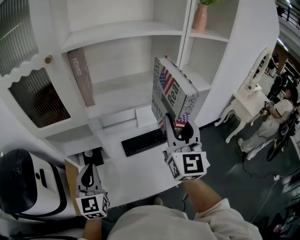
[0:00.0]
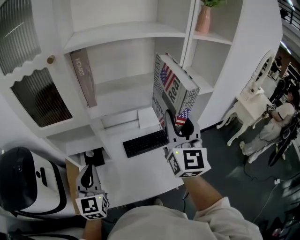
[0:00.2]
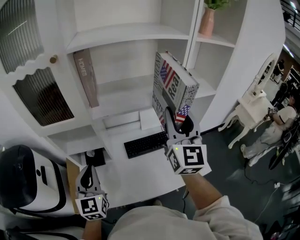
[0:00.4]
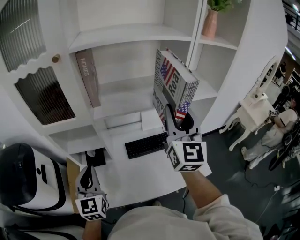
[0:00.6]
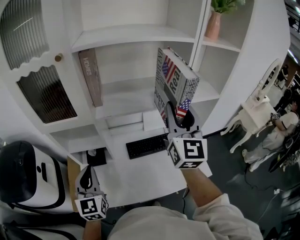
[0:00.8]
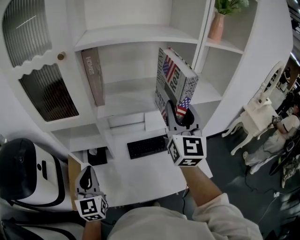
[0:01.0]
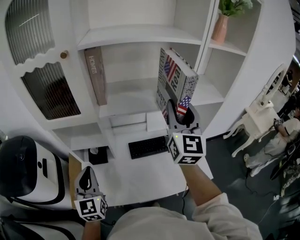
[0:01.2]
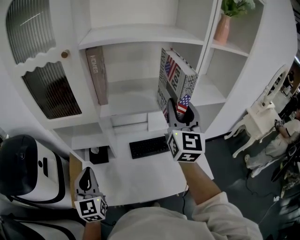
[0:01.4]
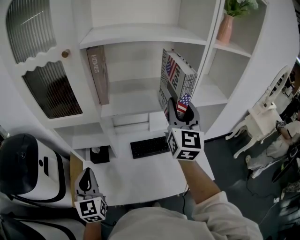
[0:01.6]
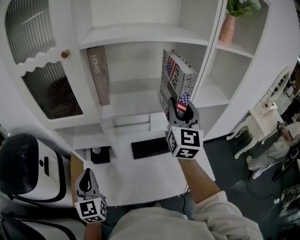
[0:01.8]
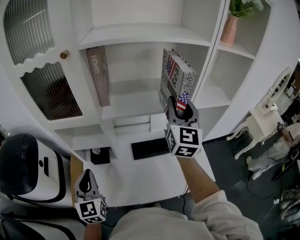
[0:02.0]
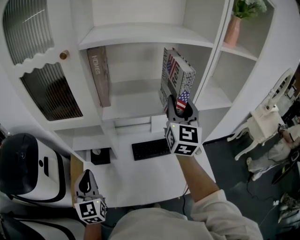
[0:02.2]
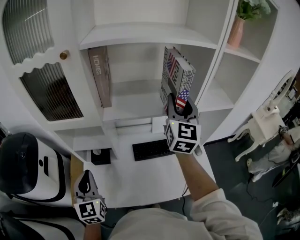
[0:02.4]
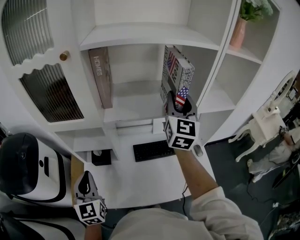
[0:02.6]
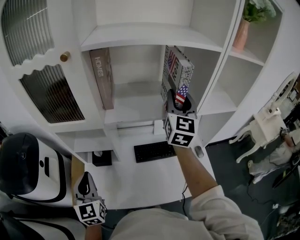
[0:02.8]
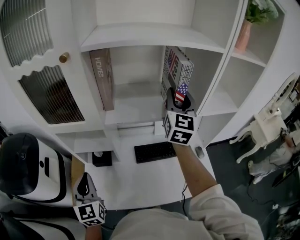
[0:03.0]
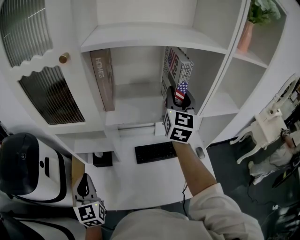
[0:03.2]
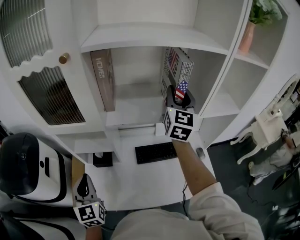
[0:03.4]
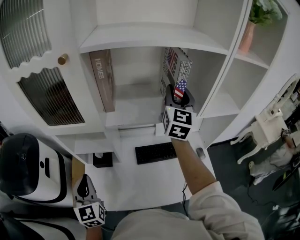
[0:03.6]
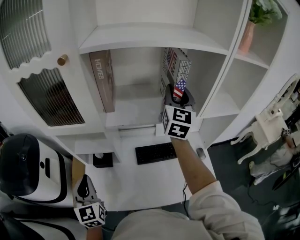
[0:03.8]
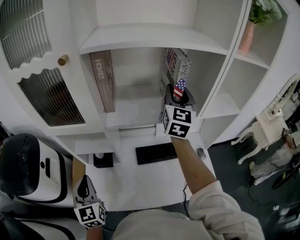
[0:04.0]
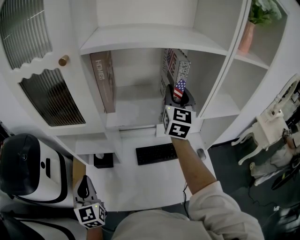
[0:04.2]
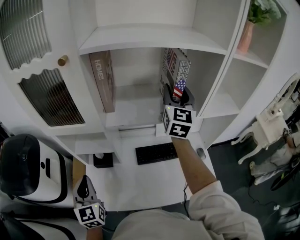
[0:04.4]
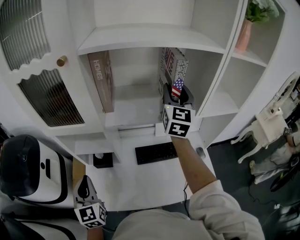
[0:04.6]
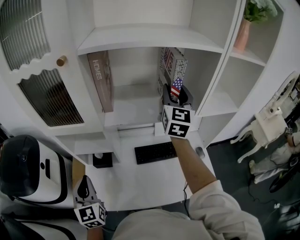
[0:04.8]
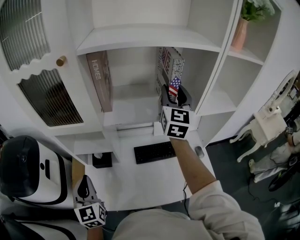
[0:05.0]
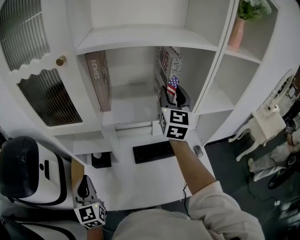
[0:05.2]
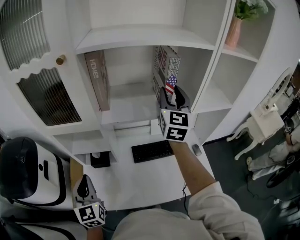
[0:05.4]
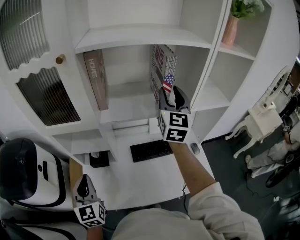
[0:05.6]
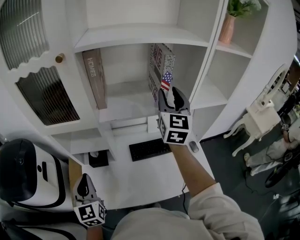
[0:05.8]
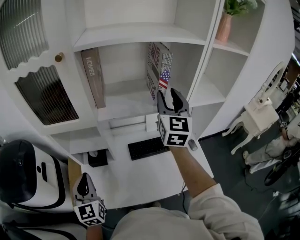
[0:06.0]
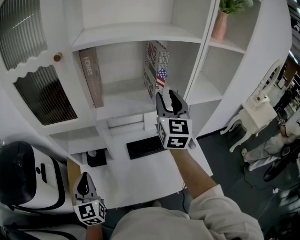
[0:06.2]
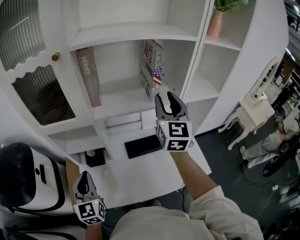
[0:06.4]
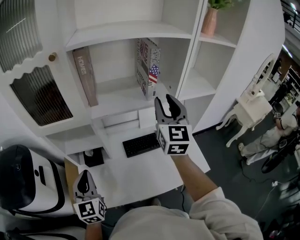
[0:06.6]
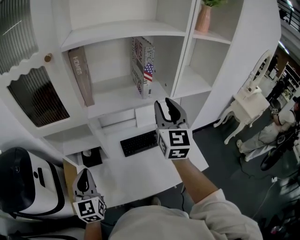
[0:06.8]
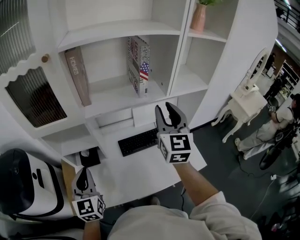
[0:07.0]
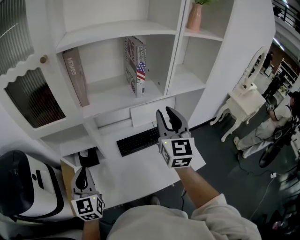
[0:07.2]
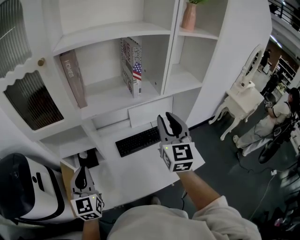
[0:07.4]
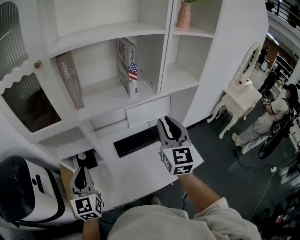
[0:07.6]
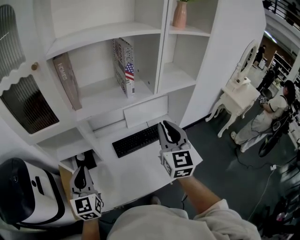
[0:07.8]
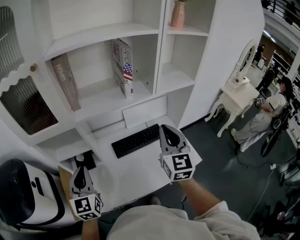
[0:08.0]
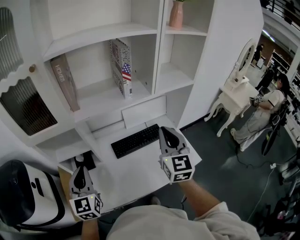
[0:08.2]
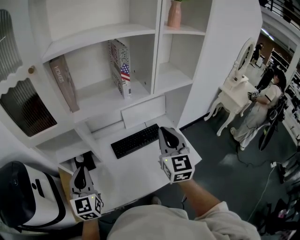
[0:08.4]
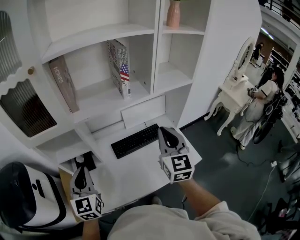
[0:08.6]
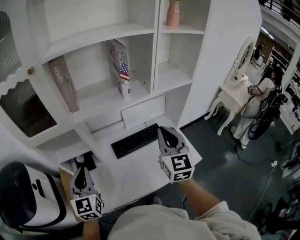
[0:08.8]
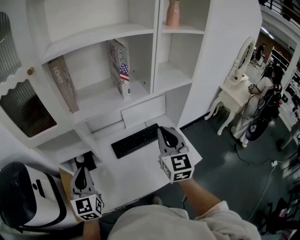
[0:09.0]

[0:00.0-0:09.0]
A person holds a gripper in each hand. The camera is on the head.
0:00.0 to 0:01.6: The right gripper heads forward, covering approximately 10 cm.
0:01.6 to 0:03.0: The right gripper heads forward, covering some 10 cm.
0:03.0 to 0:04.4: There are only small adjustments of the grippers.
0:04.4 to 0:06.0: The right gripper shifts about 10 cm backward.
0:06.0 to 0:07.6: The left gripper moves to the right, about 5 cm. The right gripper heads backward, covering about 15 cm, and closes.
0:07.6 to 0:09.0: The right gripper closes.

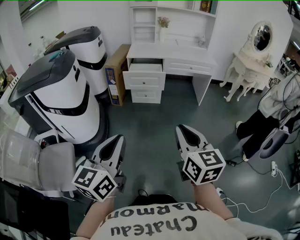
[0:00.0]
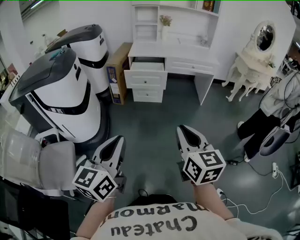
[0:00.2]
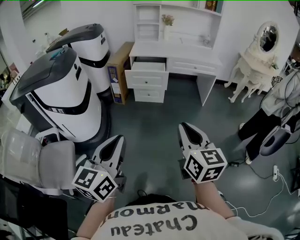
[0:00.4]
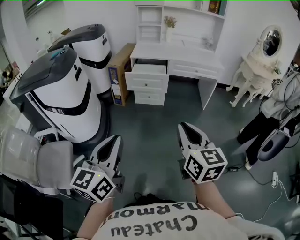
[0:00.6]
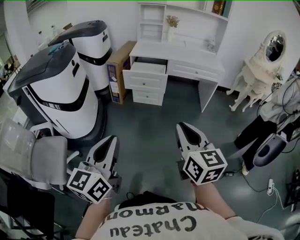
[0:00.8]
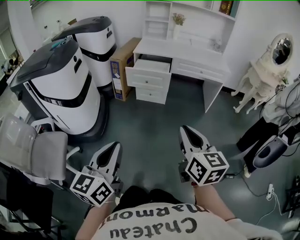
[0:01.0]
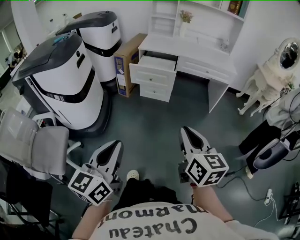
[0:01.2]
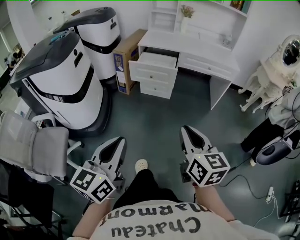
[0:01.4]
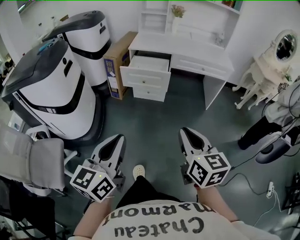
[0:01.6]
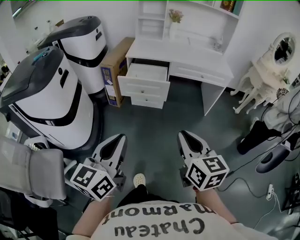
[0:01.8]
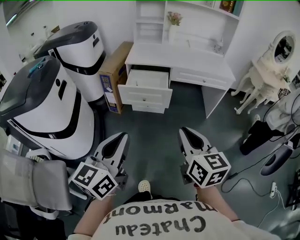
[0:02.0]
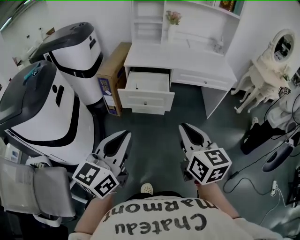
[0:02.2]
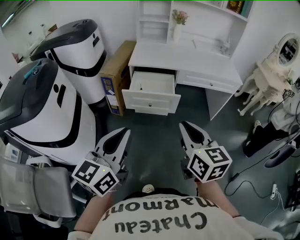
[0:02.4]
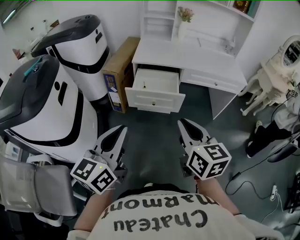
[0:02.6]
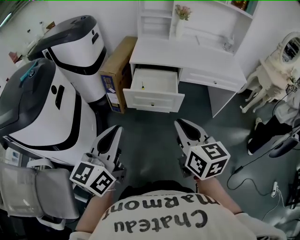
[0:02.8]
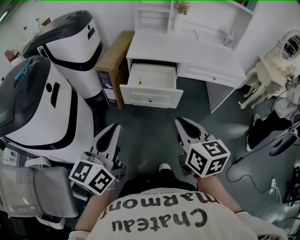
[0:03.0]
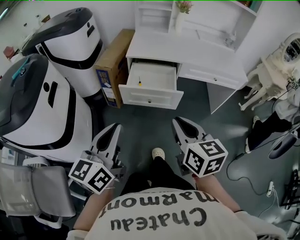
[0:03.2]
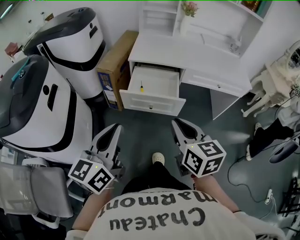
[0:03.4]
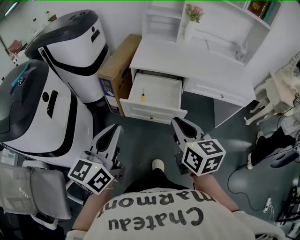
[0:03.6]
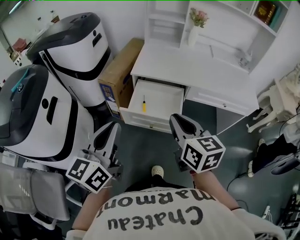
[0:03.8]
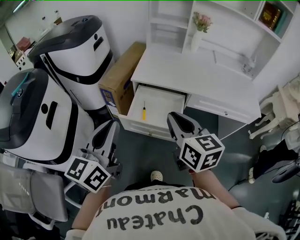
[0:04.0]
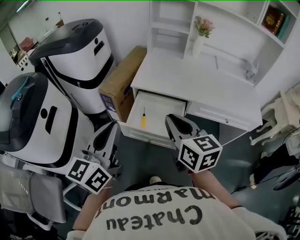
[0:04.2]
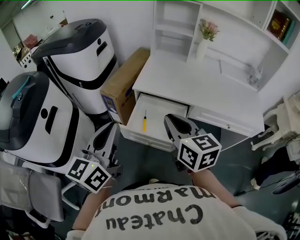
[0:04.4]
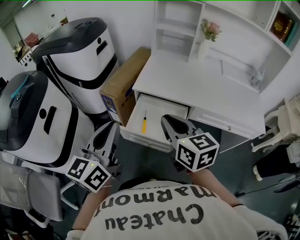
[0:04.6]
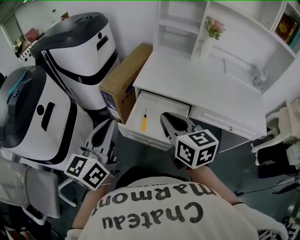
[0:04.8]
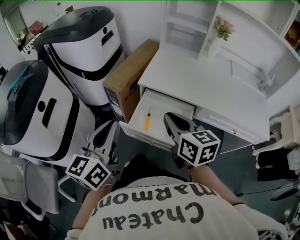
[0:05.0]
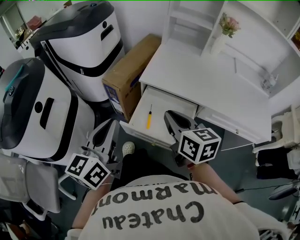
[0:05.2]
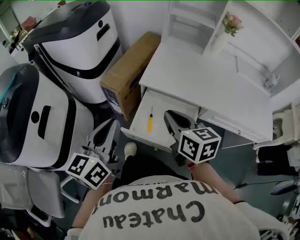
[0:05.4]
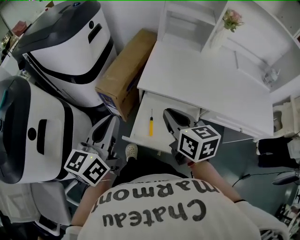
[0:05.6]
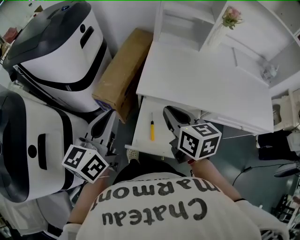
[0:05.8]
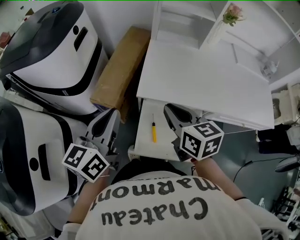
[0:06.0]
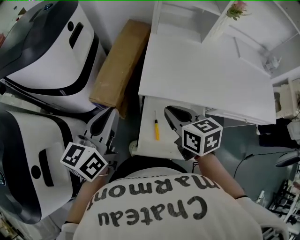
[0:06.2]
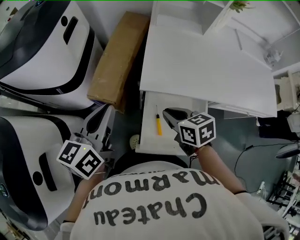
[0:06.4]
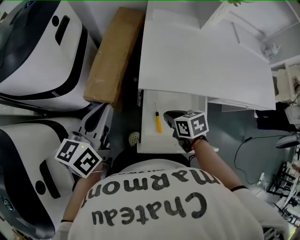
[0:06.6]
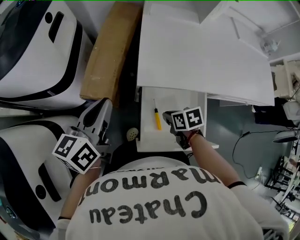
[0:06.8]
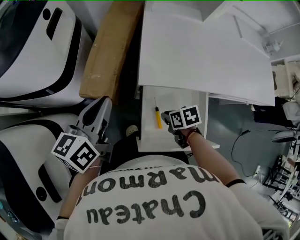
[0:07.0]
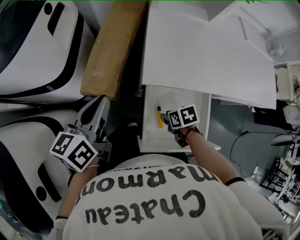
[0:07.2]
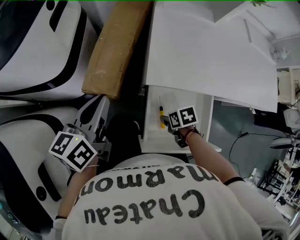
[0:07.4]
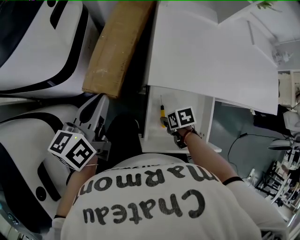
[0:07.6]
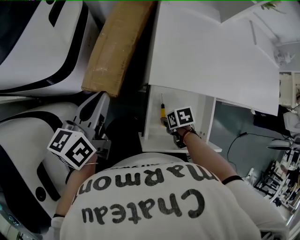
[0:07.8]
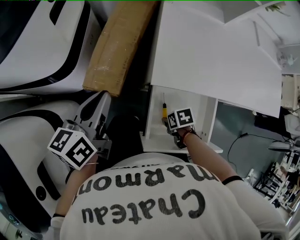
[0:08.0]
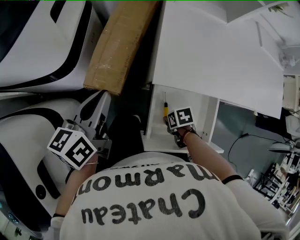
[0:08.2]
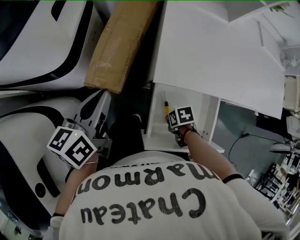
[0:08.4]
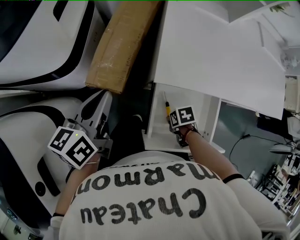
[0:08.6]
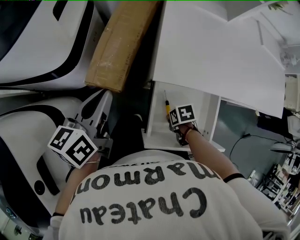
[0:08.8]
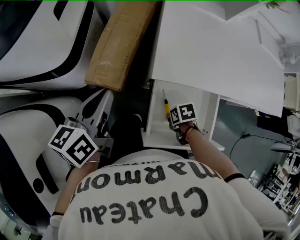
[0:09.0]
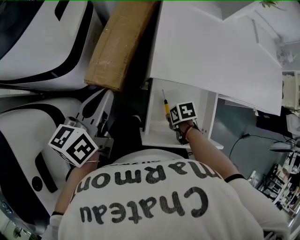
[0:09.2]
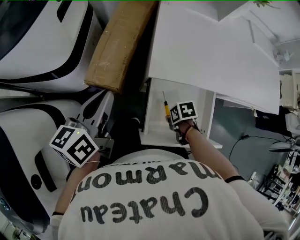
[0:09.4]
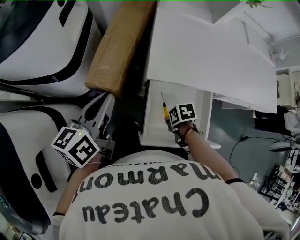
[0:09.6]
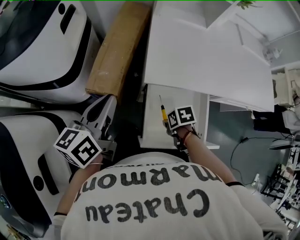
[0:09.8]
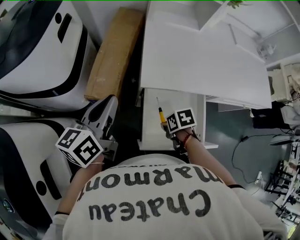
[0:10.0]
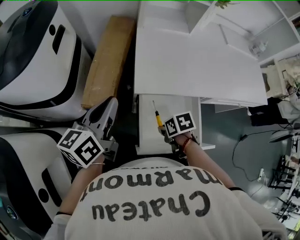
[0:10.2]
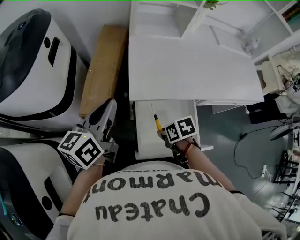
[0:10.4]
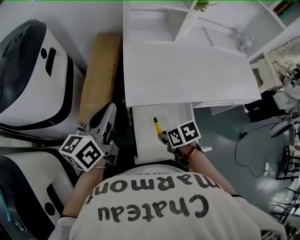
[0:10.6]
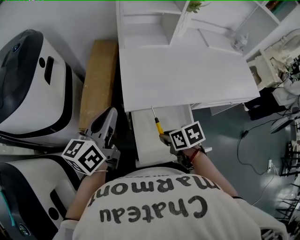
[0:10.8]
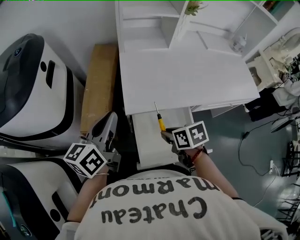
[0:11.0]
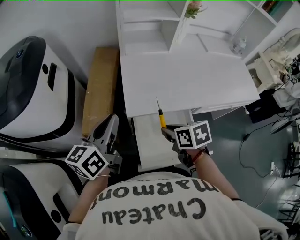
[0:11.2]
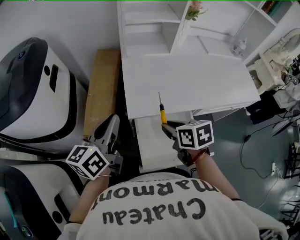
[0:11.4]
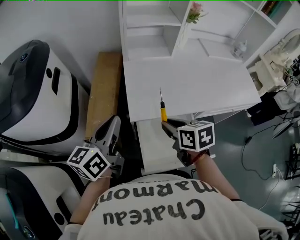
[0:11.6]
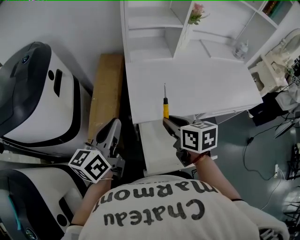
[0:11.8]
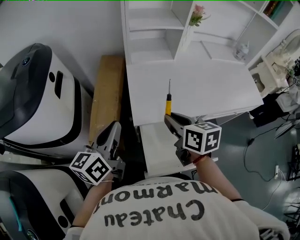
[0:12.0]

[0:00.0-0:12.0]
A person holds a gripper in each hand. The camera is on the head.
0:00.0 to 0:01.6: The grippers both shift forward and to the right by some 20 cm.
0:01.6 to 0:03.0: The right gripper heads forward and to the left, covering roughly 30 cm; the left gripper travels forward by roughly 25 cm.
0:03.0 to 0:04.4: Both grippers move forward, approximately 25 cm.
0:04.4 to 0:06.0: The left gripper goes approximately 25 cm forward. The right gripper shifts roughly 25 cm forward and downward.
0:06.0 to 0:07.6: The left gripper goes approximately 15 cm downward, forward and to the left. The right gripper travels downward by roughly 35 cm, points its fingers roughly 40 degrees further downward, and opens.
0:07.6 to 0:09.0: The right gripper closes.
0:09.0 to 0:10.4: The right gripper moves upward, about 15 cm. The left gripper goes some 10 cm upward.
0:10.4 to 0:12.0: The right gripper goes approximately 25 cm upward and forward, and tilts its fingers some 30 degrees upward.

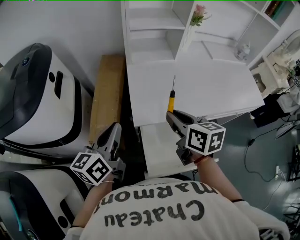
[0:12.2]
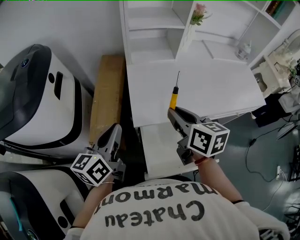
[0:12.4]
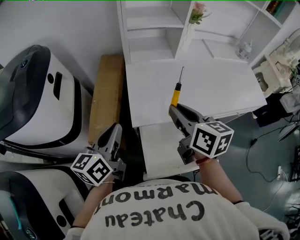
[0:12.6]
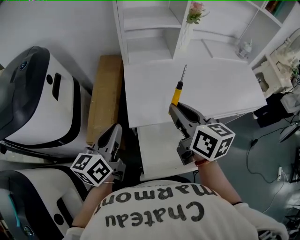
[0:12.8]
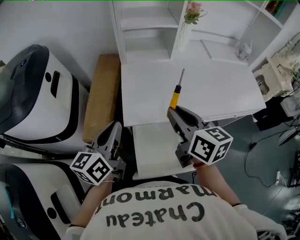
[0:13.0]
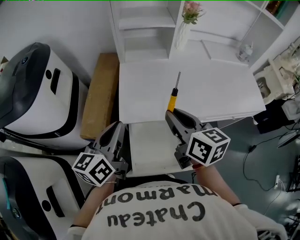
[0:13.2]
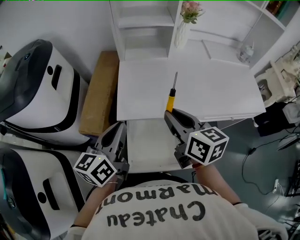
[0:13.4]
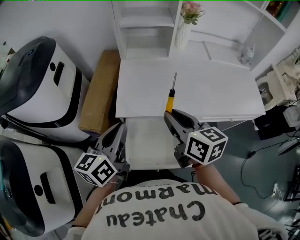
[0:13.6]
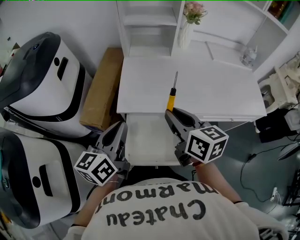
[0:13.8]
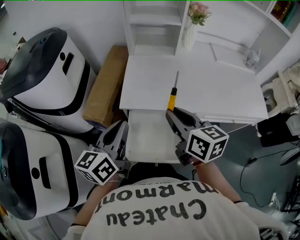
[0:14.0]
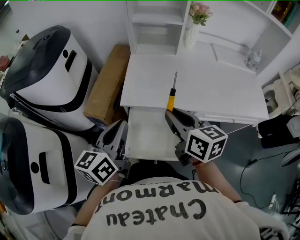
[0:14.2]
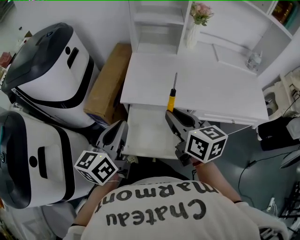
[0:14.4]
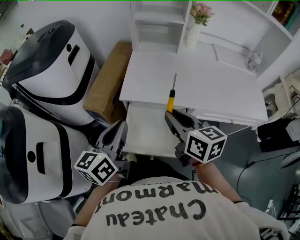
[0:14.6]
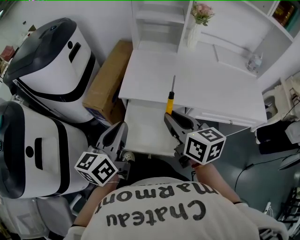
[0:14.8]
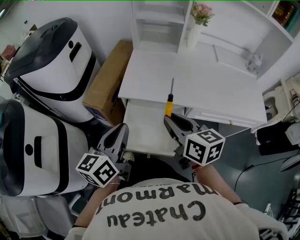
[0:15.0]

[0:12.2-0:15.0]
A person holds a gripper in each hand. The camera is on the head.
0:12.2 to 0:13.6: The left gripper goes roughly 15 cm to the right and backward; the right gripper moves to the right, approximately 10 cm.
0:13.6 to 0:15.0: The grippers both shift backward by approximately 10 cm.
